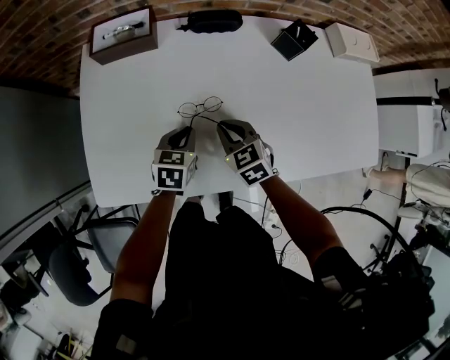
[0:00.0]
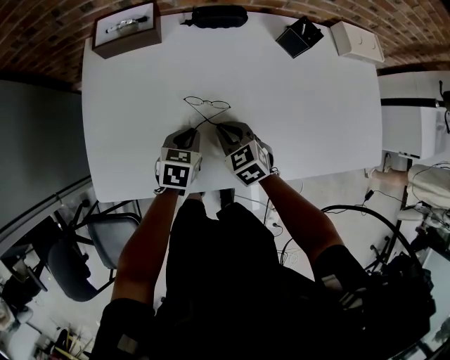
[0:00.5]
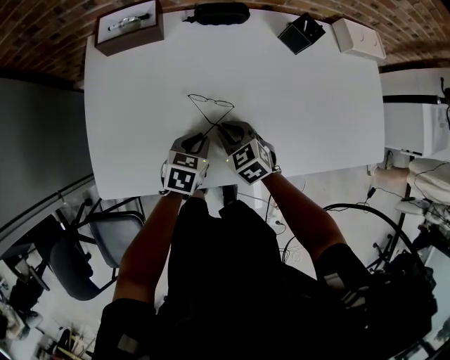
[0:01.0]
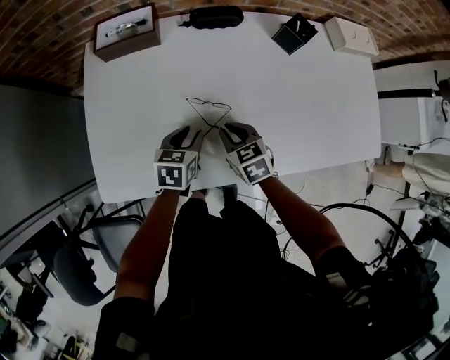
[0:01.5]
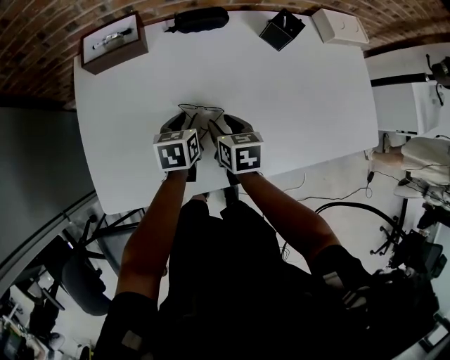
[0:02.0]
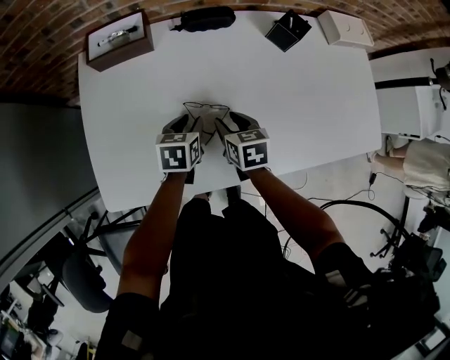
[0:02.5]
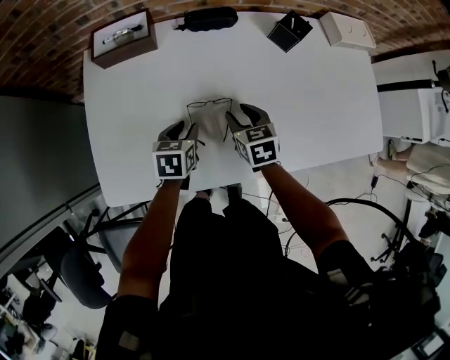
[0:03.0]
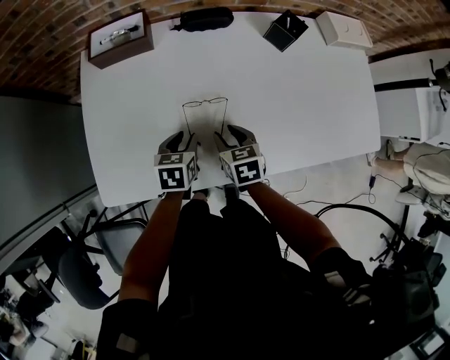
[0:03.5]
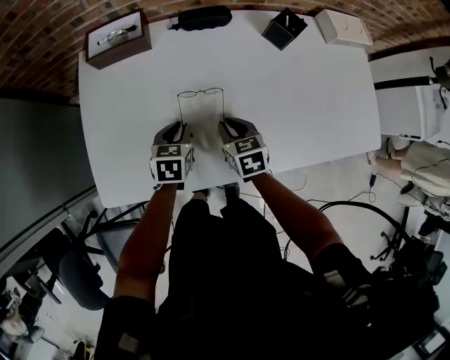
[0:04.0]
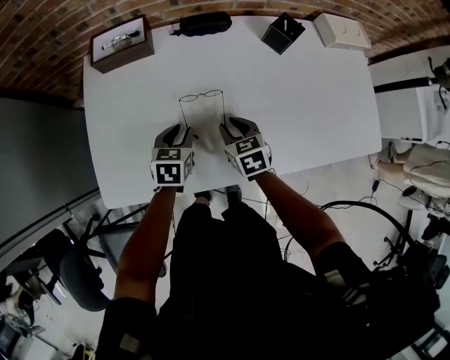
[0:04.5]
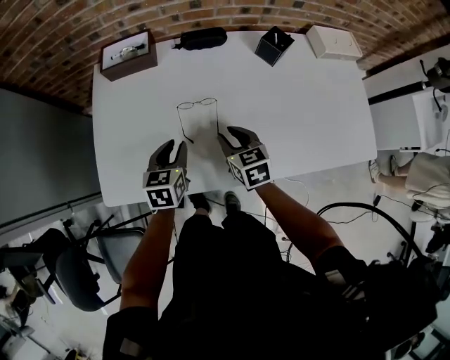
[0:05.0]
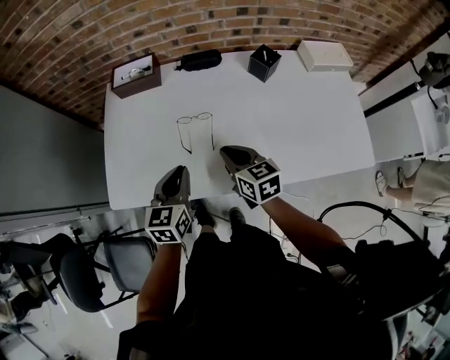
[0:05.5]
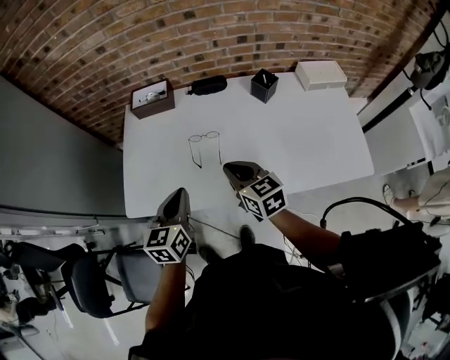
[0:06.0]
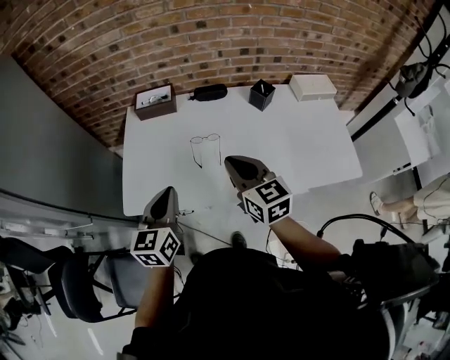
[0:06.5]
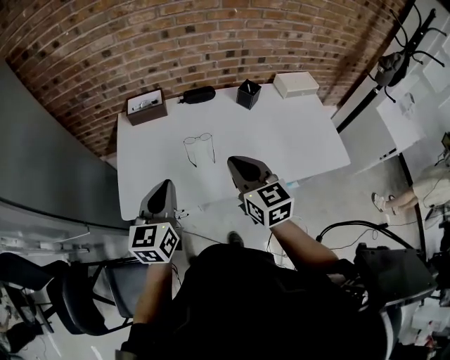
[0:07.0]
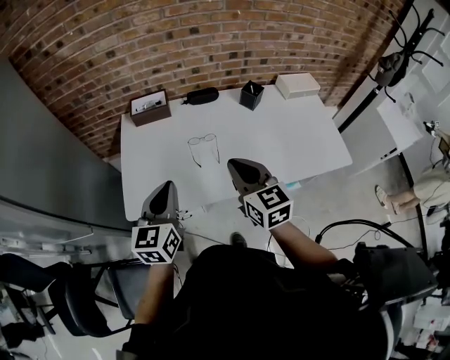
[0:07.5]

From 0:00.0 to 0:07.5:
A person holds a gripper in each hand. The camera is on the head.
From 0:00.0 to 0:02.0: The right gripper changes its angle by some 40 degrees, and opens, while the left gripper opens its fingers.
From 0:04.0 to 0:05.5: Both grippers travel together upward and backward, approximately 15 cm. The left gripper rotates some 20 degrees; the right gripper rotates approximately 20 degrees.
From 0:05.5 to 0:07.5: The left gripper travels upward, to the left and backward by about 20 cm, while the right gripper shifts approximately 20 cm upward and backward, and rotates approximately 20 degrees.

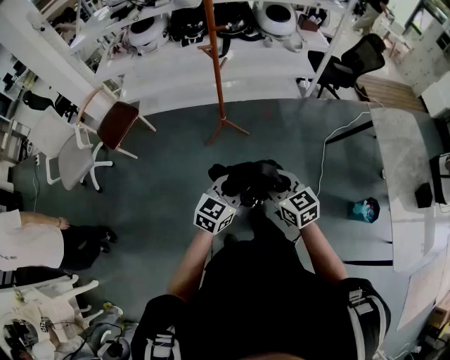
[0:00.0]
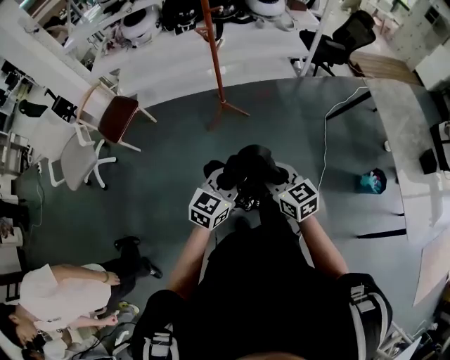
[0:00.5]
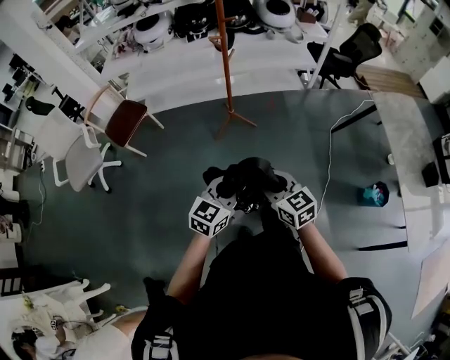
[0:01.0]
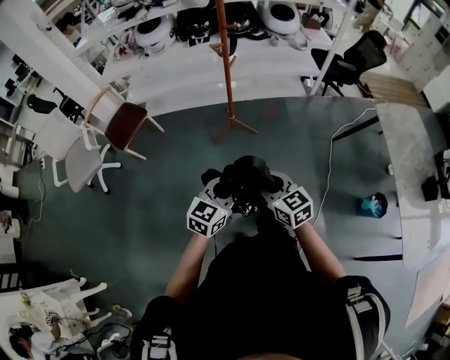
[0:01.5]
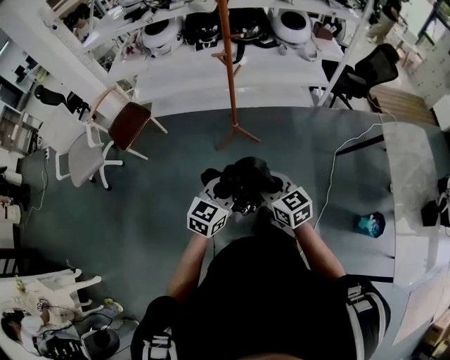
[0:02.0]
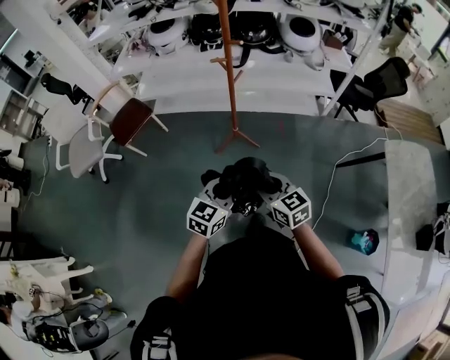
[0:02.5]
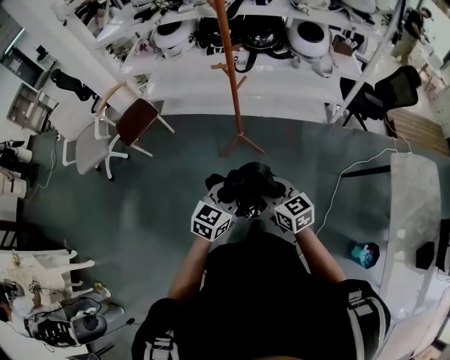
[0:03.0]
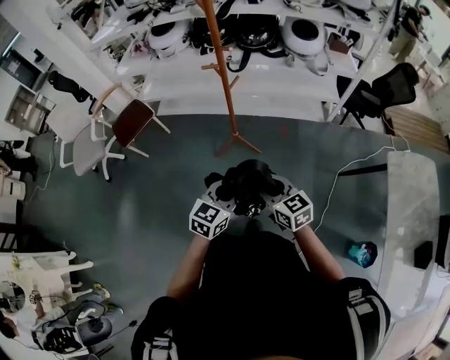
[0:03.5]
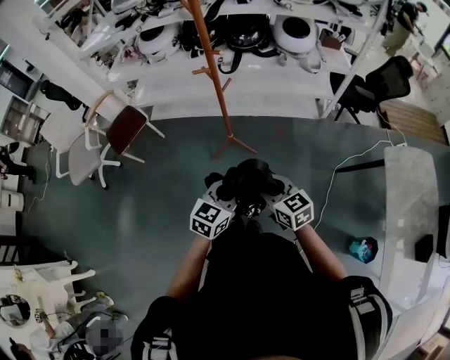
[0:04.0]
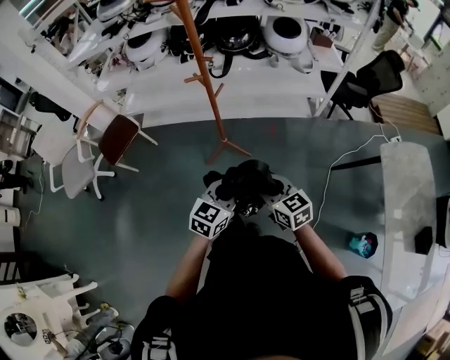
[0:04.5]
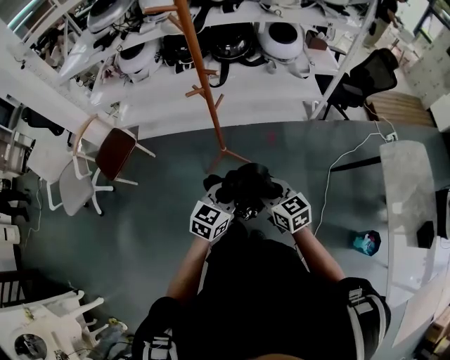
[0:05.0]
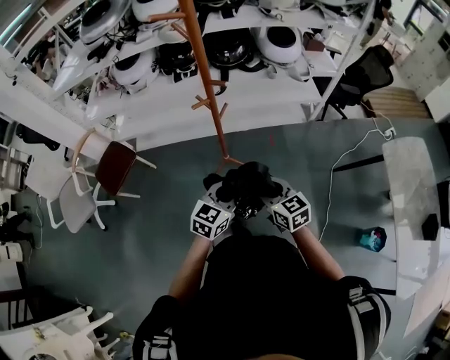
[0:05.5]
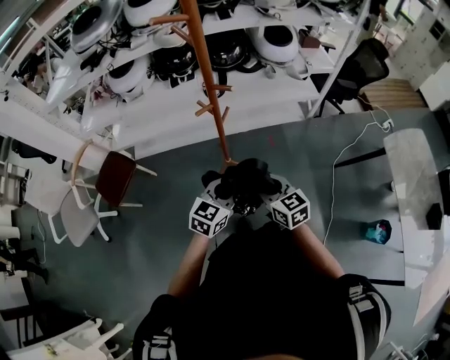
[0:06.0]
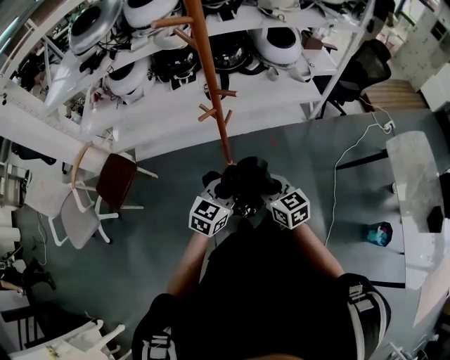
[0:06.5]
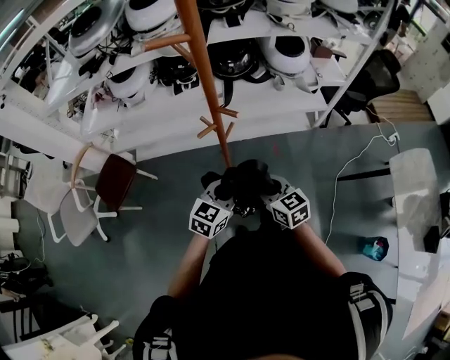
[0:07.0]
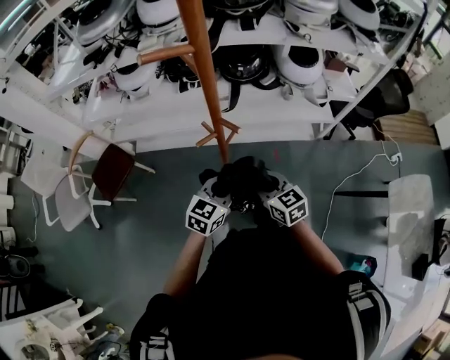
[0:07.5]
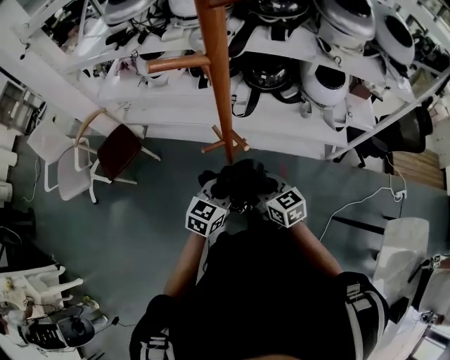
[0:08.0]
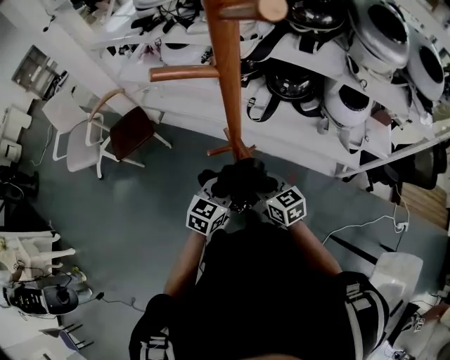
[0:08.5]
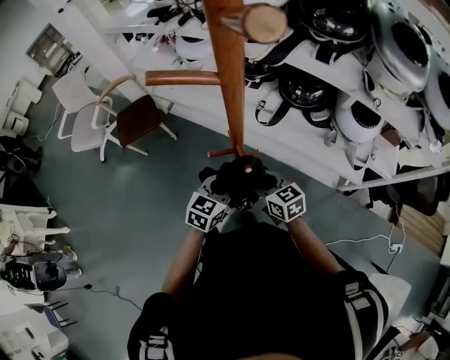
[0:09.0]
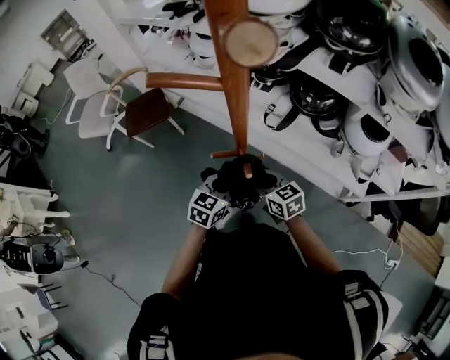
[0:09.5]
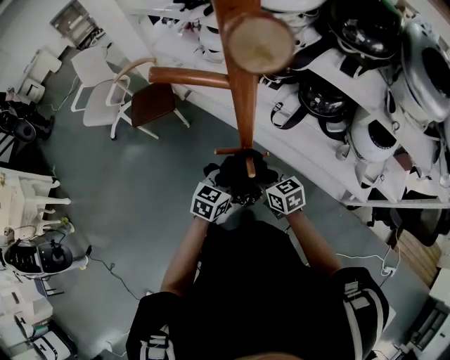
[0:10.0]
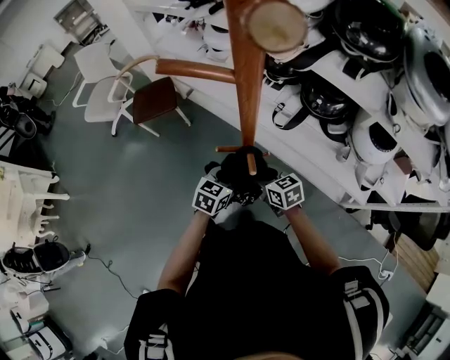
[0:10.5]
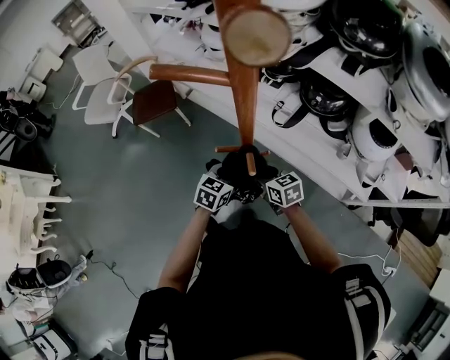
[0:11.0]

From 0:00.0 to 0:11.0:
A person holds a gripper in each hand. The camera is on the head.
From 0:00.0 to 0:02.0: Both grippers move forward and to the left, about 10 cm.
From 0:02.0 to 0:03.5: Both grippers move to the right and forward, roughly 20 cm.
From 0:03.5 to 0:05.5: The two grippers go some 20 cm forward and to the left.
From 0:05.5 to 0:07.5: Both grippers move forward, about 25 cm.
From 0:07.5 to 0:09.0: The right gripper shifts by some 15 cm, and swivels roughly 30 degrees. The left gripper changes place by roughly 15 cm, and turns by about 30 degrees.
From 0:09.0 to 0:11.0: The grippers both shift downward by some 5 cm.

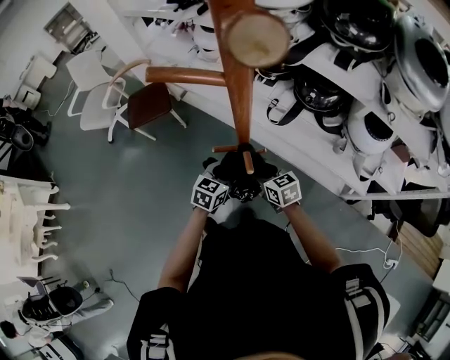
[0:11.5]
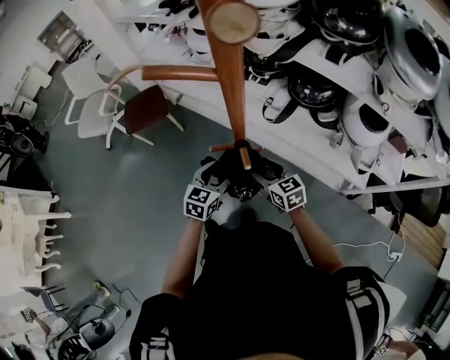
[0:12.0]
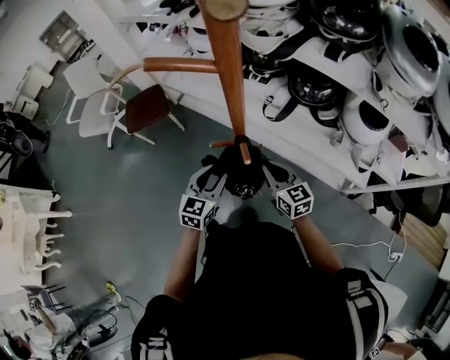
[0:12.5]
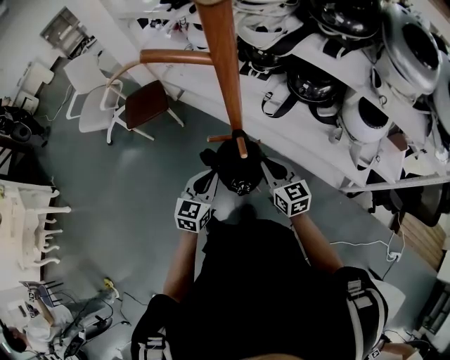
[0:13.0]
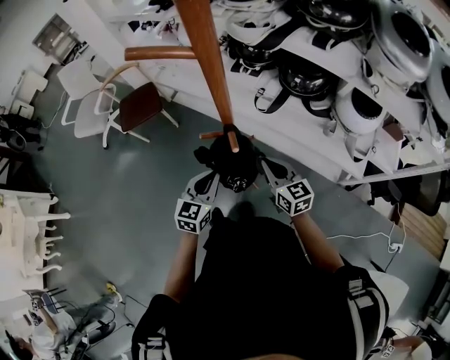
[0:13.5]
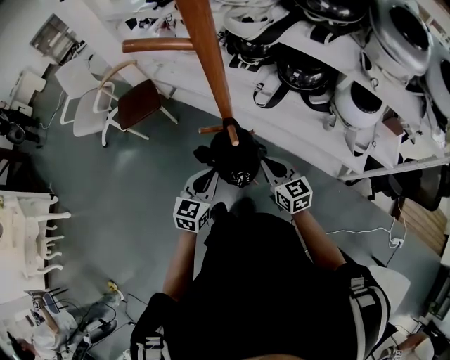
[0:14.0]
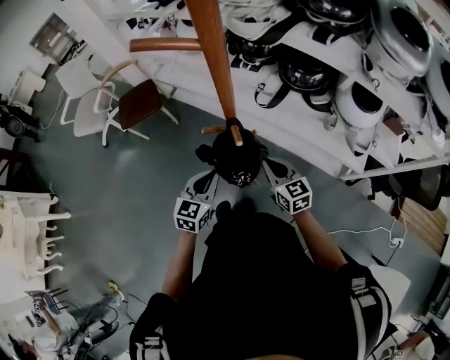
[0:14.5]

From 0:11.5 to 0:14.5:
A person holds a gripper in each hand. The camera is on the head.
From 0:11.5 to 0:13.0: The left gripper goes approximately 10 cm backward, upward and to the left, and closes its fingers. Meanwhile the right gripper heads upward, covering some 5 cm, and closes its fingers.
From 0:13.0 to 0:14.5: The grippers make only small movements.

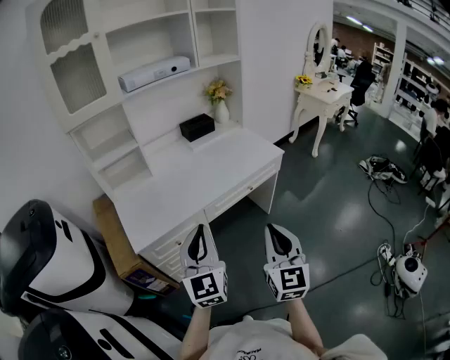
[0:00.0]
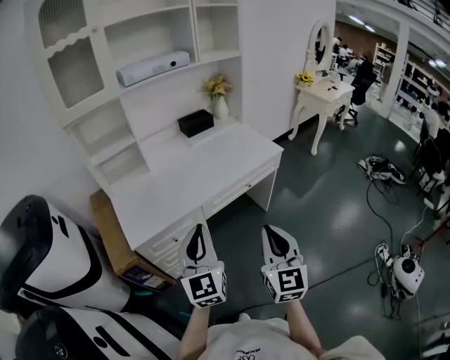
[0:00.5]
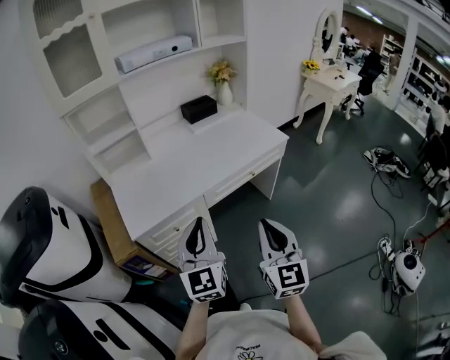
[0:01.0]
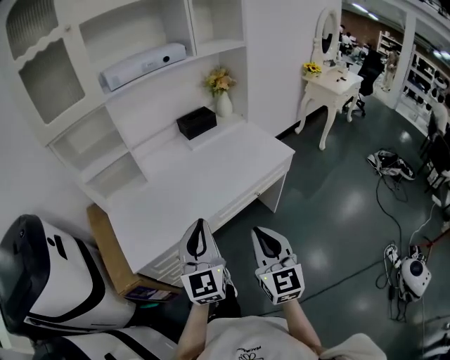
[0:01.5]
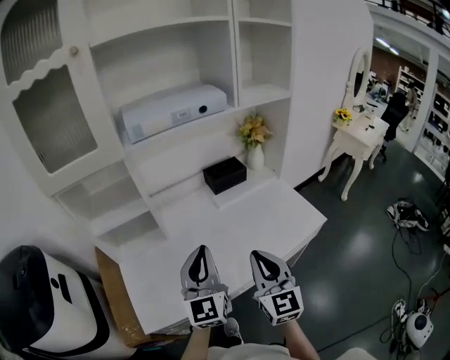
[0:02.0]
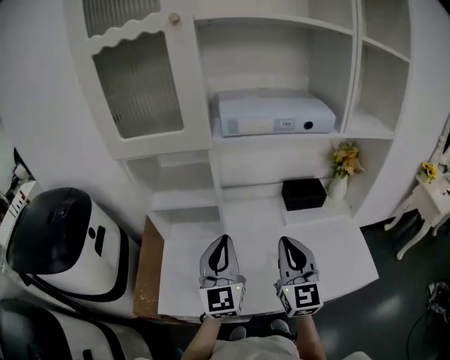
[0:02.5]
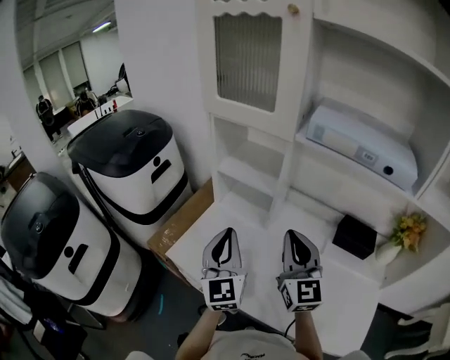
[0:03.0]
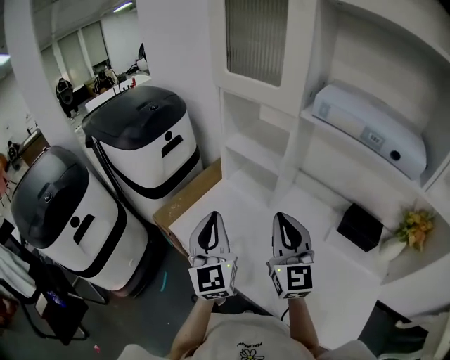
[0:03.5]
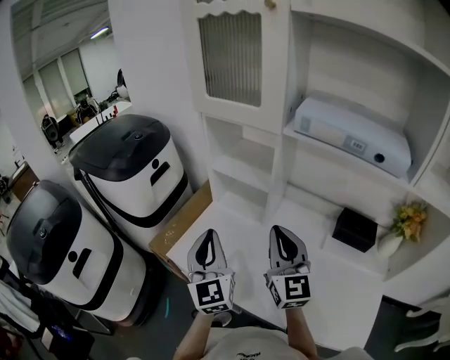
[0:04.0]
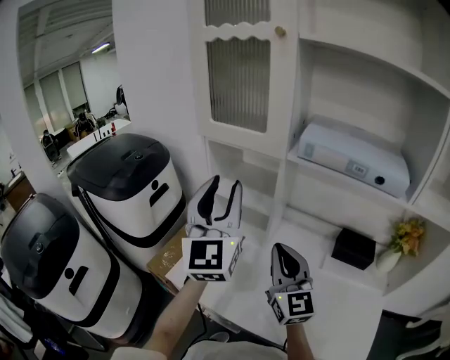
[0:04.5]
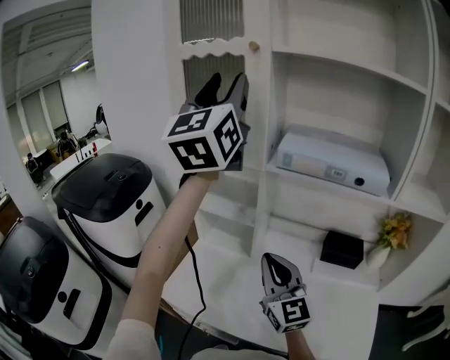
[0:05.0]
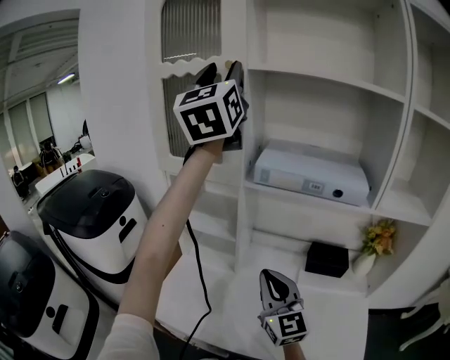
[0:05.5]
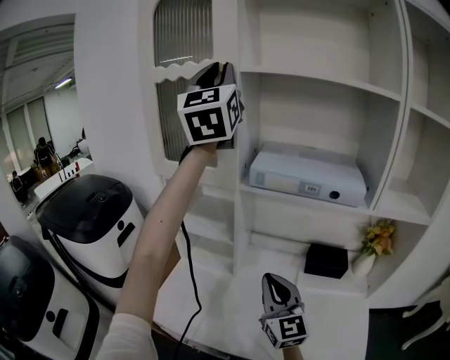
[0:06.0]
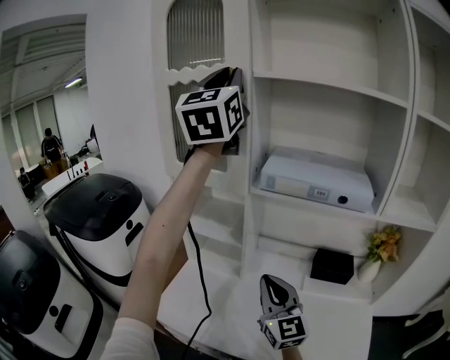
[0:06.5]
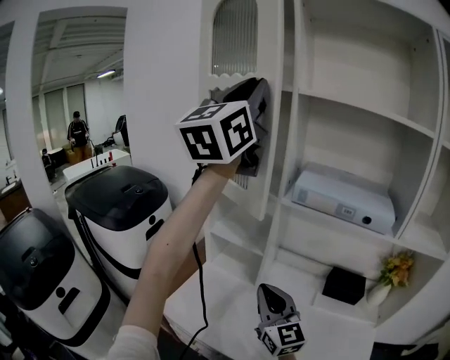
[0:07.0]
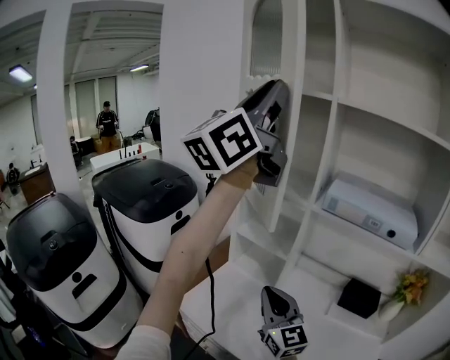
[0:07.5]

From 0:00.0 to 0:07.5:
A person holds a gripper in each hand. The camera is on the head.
From 0:00.0 to 0:02.0: Both grippers travel together forward, some 35 cm.
From 0:02.0 to 0:04.0: The left gripper ends up roughly 15 cm from where it was, and swivels some 70 degrees; the right gripper moves roughly 20 cm, and changes its angle by about 60 degrees.
From 0:04.0 to 0:05.5: The left gripper shifts about 50 cm upward, changes its angle by about 40 degrees, and opens.
From 0:05.5 to 0:07.5: The right gripper shifts approximately 10 cm to the left, while the left gripper shifts some 15 cm backward and to the left, turns by approximately 20 degrees, and closes.
